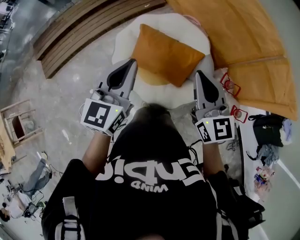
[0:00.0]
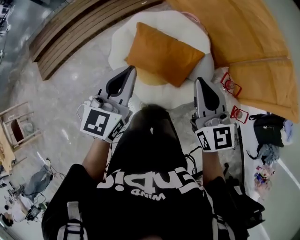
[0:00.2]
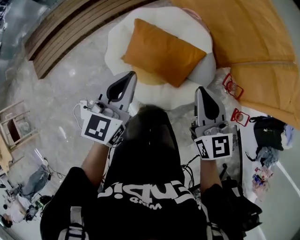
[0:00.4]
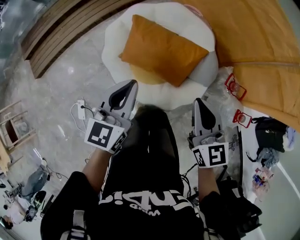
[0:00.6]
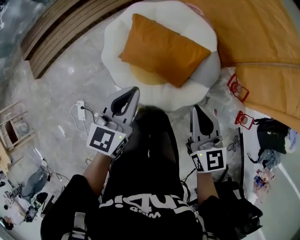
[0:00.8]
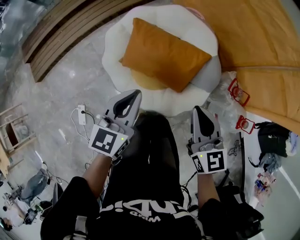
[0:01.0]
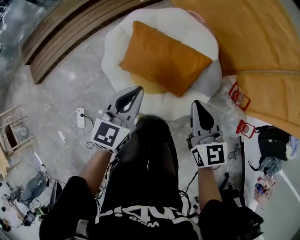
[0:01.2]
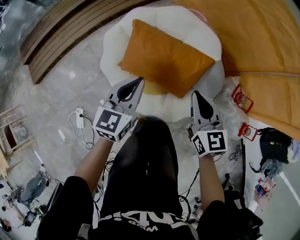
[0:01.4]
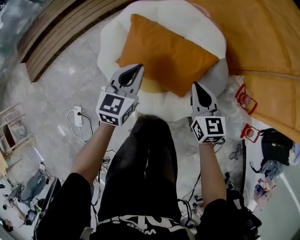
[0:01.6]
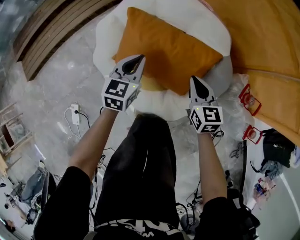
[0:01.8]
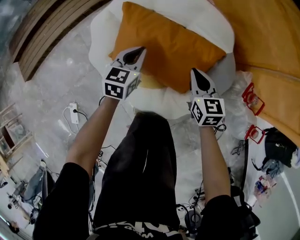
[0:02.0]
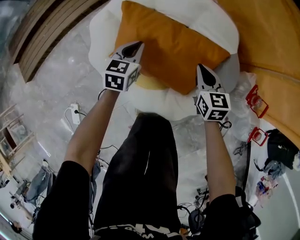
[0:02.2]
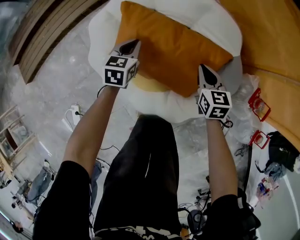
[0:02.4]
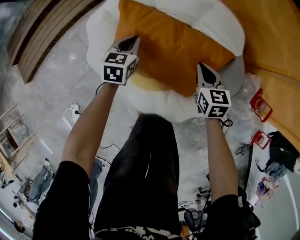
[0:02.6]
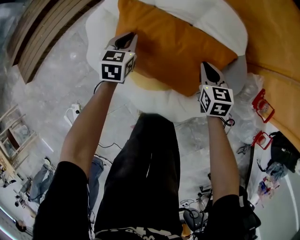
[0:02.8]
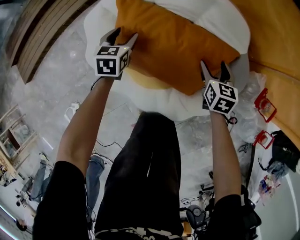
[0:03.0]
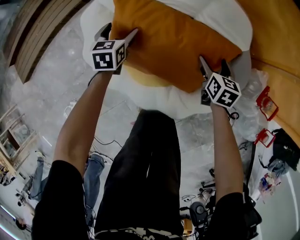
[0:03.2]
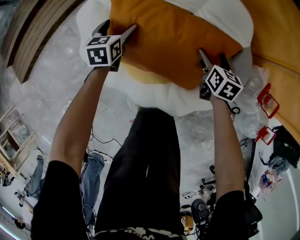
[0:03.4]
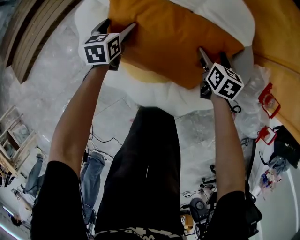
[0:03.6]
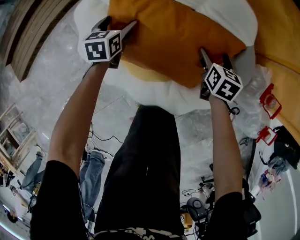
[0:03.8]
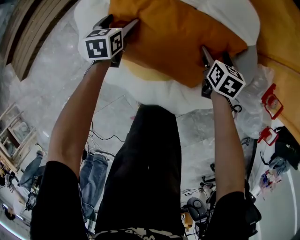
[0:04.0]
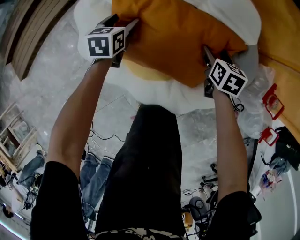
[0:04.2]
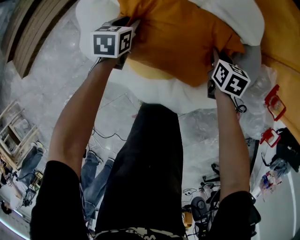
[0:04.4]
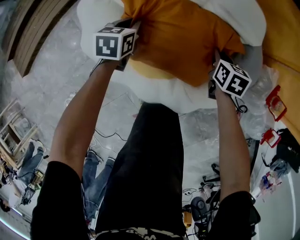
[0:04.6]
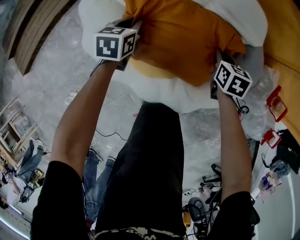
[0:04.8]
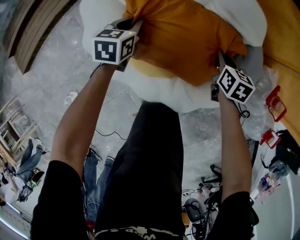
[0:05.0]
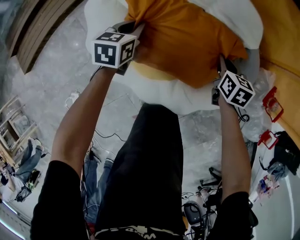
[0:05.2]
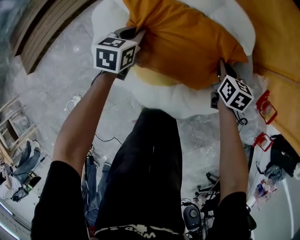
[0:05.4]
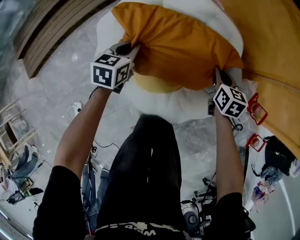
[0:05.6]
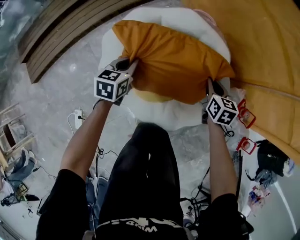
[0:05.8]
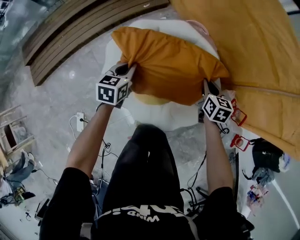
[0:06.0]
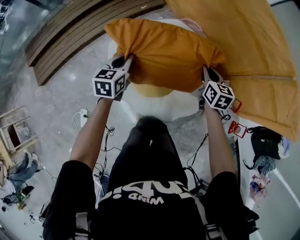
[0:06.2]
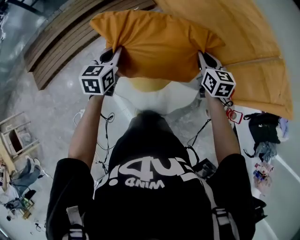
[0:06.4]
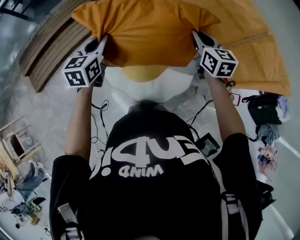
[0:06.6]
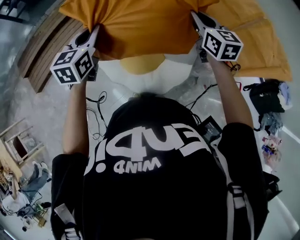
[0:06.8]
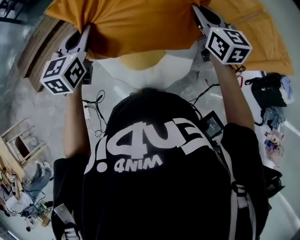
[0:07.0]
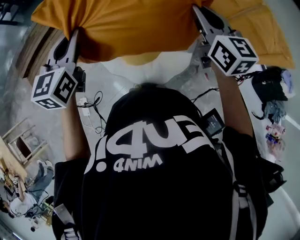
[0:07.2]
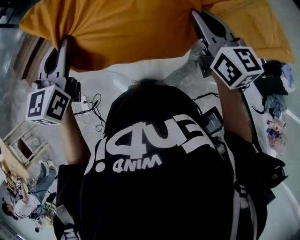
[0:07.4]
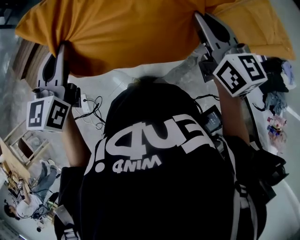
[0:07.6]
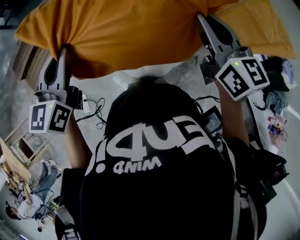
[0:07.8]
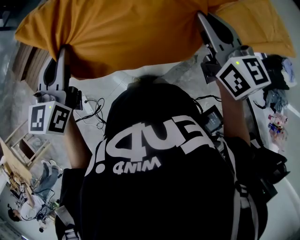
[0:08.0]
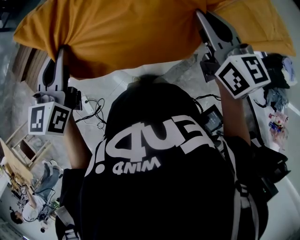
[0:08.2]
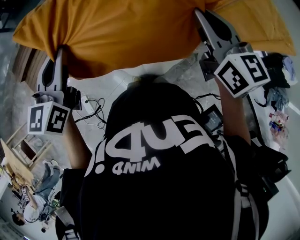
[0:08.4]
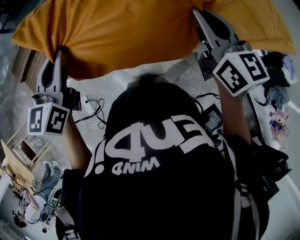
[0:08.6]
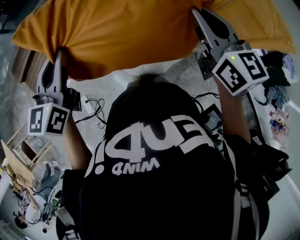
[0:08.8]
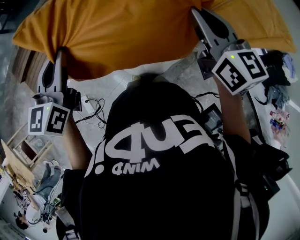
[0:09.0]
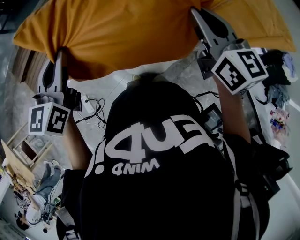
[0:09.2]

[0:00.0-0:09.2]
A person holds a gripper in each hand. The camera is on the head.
0:00.0 to 0:01.6: The grippers both shift downward by roughly 35 cm. The right gripper changes its angle by some 20 degrees.
0:01.6 to 0:03.0: Both grippers travel together downward and forward, about 25 cm. The left gripper turns by approximately 20 degrees, and opens its fingers. Meanwhile the right gripper changes its angle by roughly 20 degrees, and opens up.
0:03.0 to 0:04.6: The left gripper changes place by roughly 5 cm, and closes; the right gripper moves downward, about 5 cm, and closes.
0:04.6 to 0:06.2: Both grippers move upward, about 40 cm. The right gripper swivels approximately 20 degrees.
0:06.2 to 0:07.6: Both grippers travel together upward and backward, about 35 cm. The left gripper changes its angle by about 20 degrees, while the right gripper turns by approximately 20 degrees.
0:07.6 to 0:09.2: The grippers make only small movements.

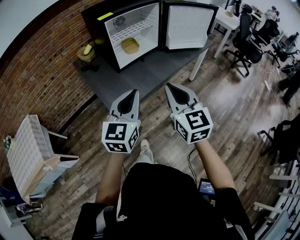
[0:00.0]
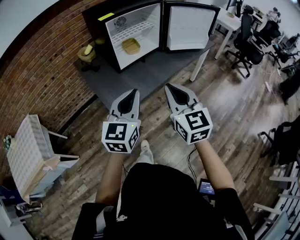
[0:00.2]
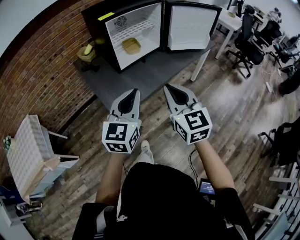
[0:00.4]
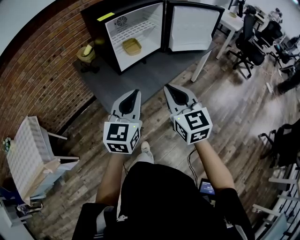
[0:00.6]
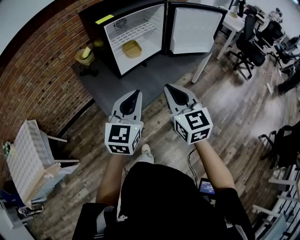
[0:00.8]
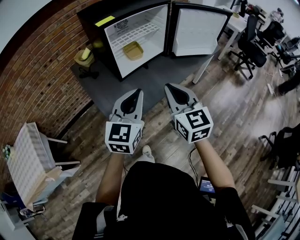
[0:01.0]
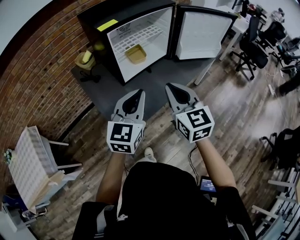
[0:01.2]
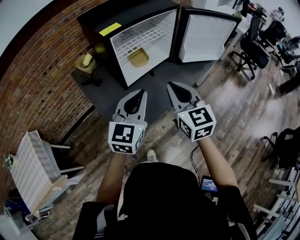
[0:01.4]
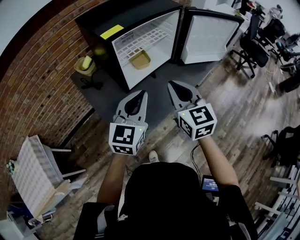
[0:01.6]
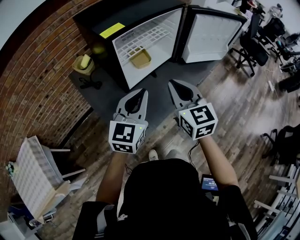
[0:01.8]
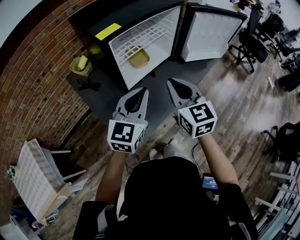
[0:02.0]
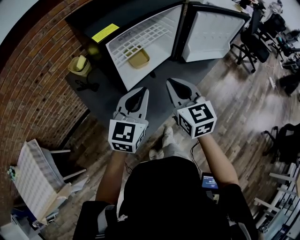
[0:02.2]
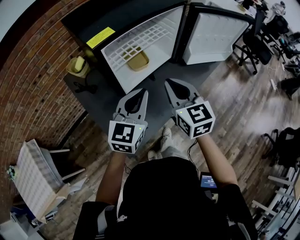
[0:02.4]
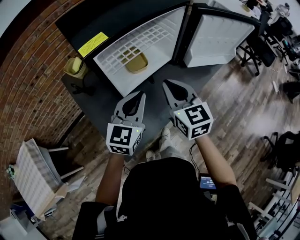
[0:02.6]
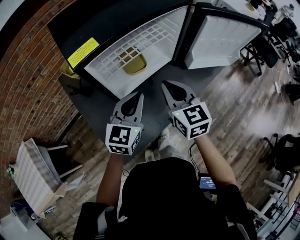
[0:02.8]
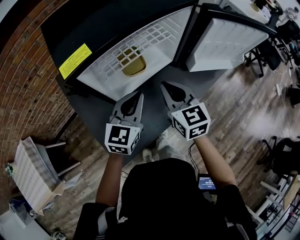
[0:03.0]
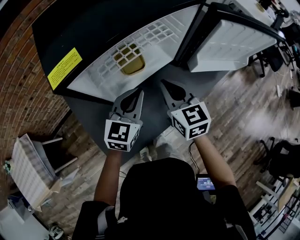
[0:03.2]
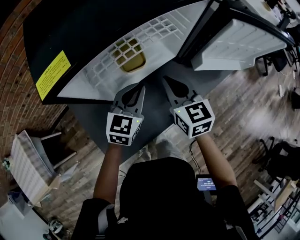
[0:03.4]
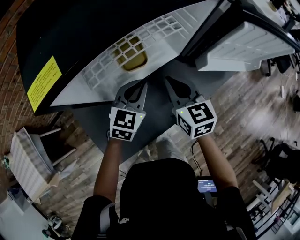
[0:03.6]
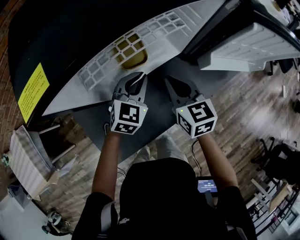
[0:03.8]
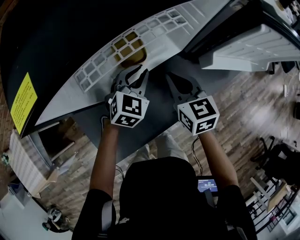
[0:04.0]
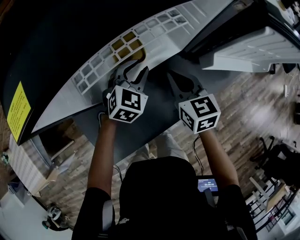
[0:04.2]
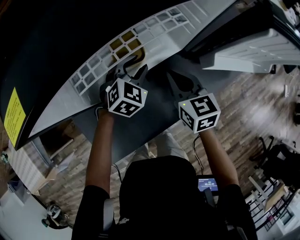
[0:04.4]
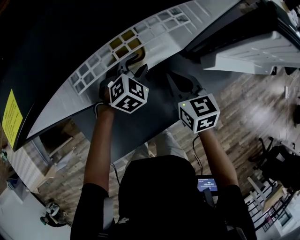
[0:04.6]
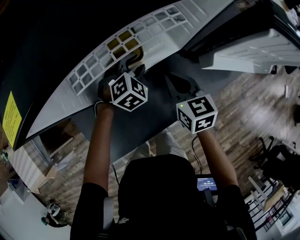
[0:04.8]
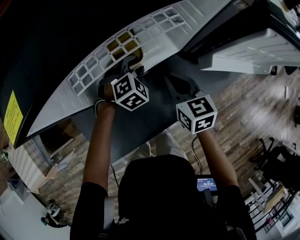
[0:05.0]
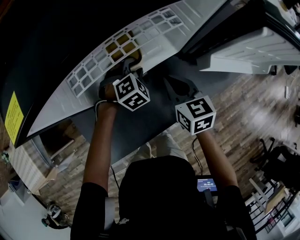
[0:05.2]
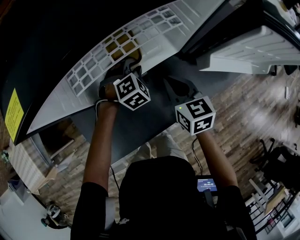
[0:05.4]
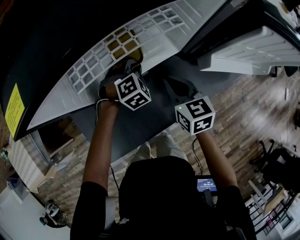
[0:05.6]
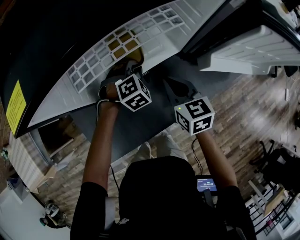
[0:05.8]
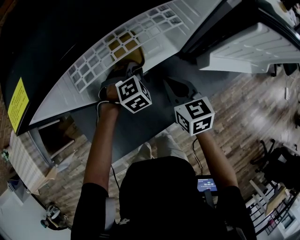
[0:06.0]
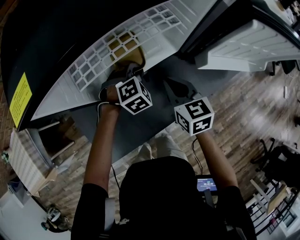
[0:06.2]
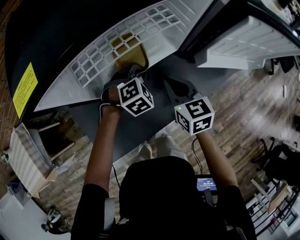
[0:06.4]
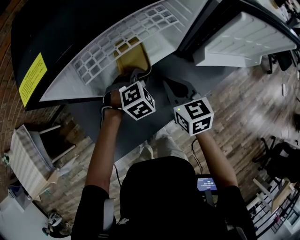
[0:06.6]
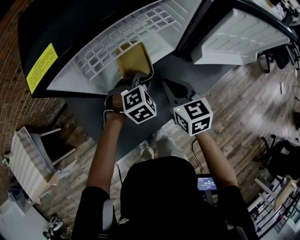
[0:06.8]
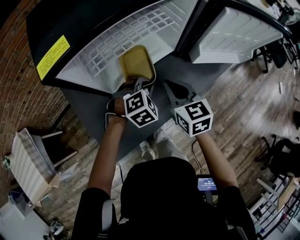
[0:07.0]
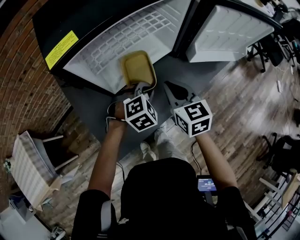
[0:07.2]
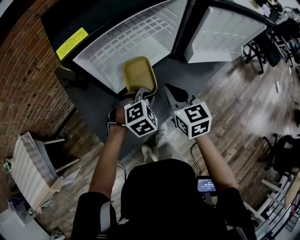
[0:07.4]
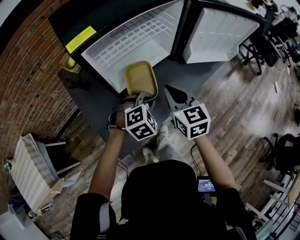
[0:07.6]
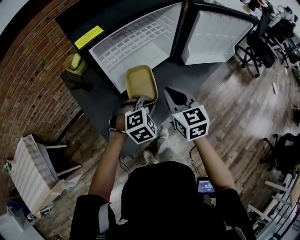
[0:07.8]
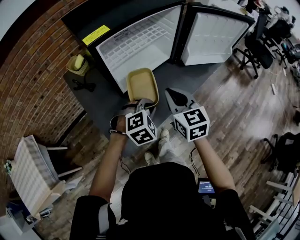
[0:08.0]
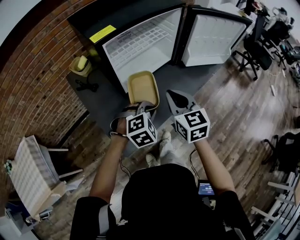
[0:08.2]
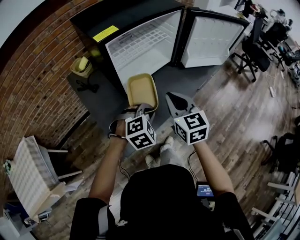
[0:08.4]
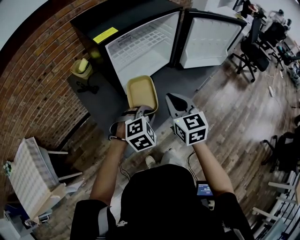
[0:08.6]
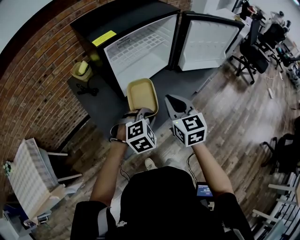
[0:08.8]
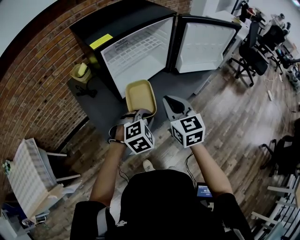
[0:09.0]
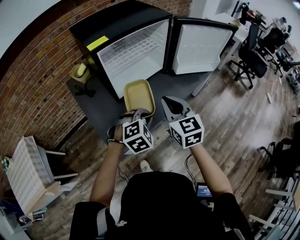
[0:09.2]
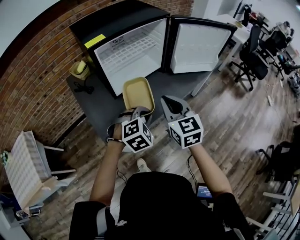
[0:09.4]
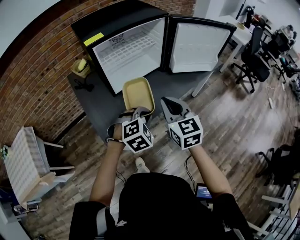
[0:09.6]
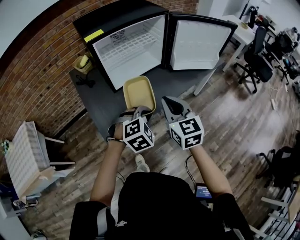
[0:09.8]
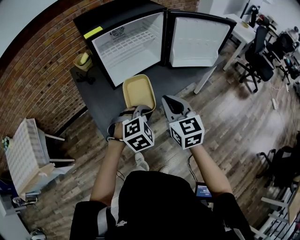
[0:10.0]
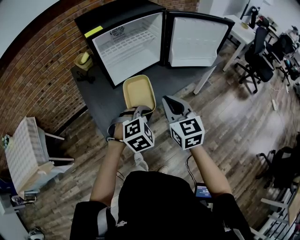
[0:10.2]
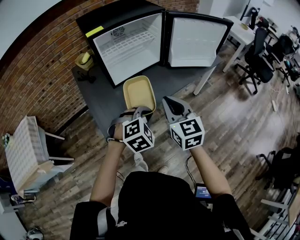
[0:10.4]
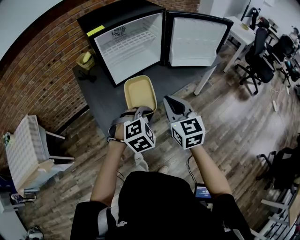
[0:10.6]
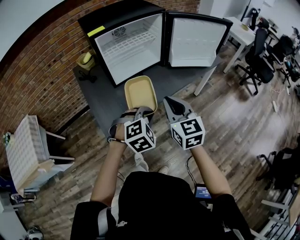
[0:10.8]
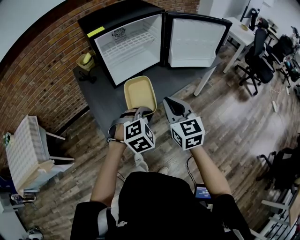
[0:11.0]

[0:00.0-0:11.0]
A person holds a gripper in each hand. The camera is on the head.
0:00.0 to 0:01.6: The two grippers go approximately 25 cm forward.
0:01.6 to 0:03.2: Both grippers move forward and downward, roughly 25 cm.
0:03.2 to 0:04.8: The left gripper moves downward and forward, some 20 cm, tilts its fingers some 30 degrees downward, and opens up. The right gripper shifts some 15 cm downward and forward.
0:04.8 to 0:06.2: The left gripper closes.
0:06.2 to 0:07.8: Both grippers move backward and upward, some 25 cm.
0:07.8 to 0:09.4: Both grippers move backward and upward, some 10 cm.
0:09.4 to 0:11.0: The two grippers go roughly 10 cm backward and to the right.

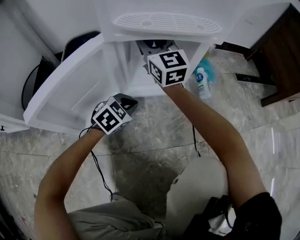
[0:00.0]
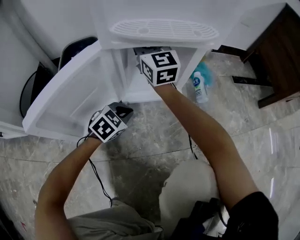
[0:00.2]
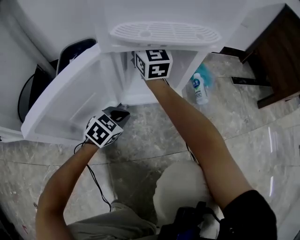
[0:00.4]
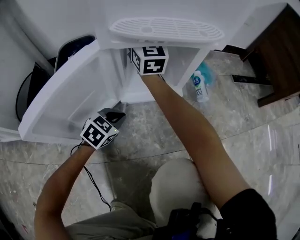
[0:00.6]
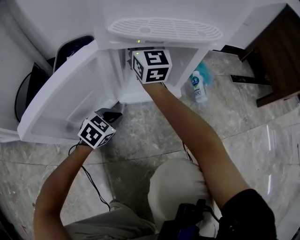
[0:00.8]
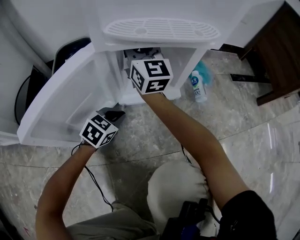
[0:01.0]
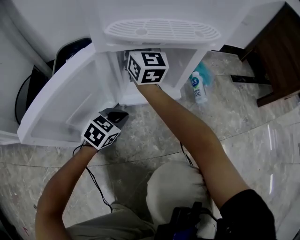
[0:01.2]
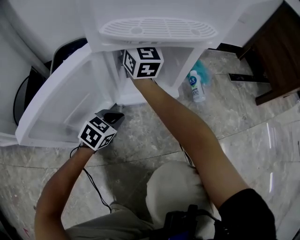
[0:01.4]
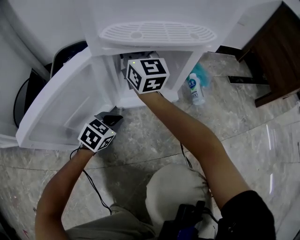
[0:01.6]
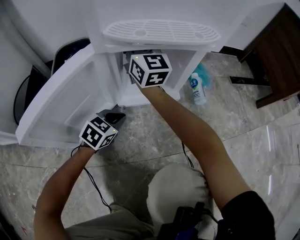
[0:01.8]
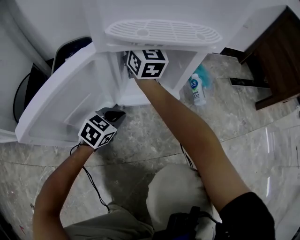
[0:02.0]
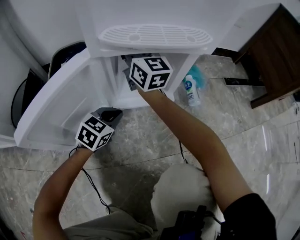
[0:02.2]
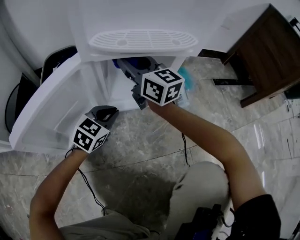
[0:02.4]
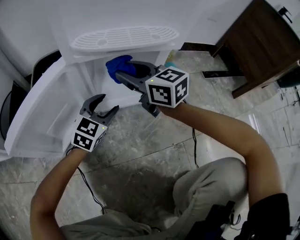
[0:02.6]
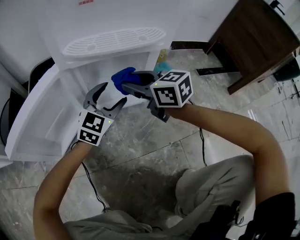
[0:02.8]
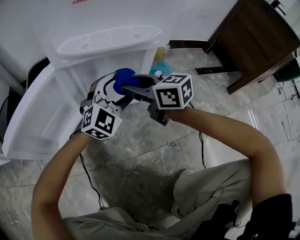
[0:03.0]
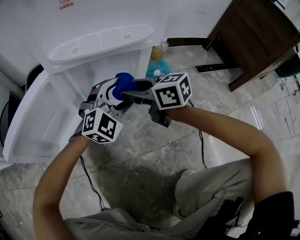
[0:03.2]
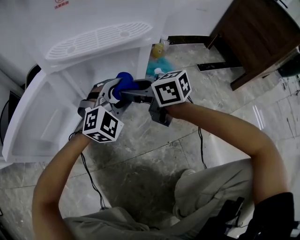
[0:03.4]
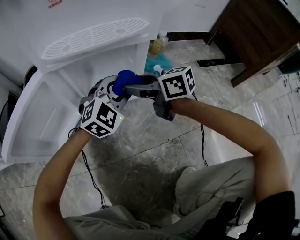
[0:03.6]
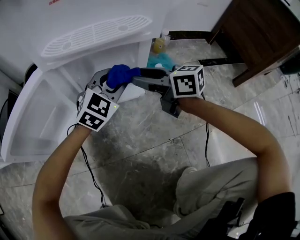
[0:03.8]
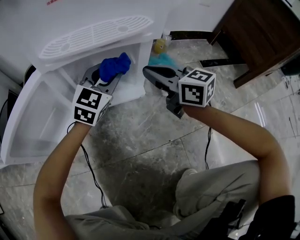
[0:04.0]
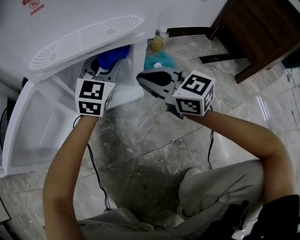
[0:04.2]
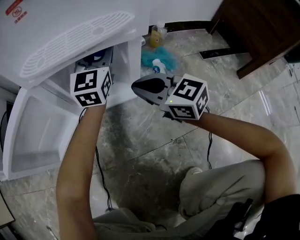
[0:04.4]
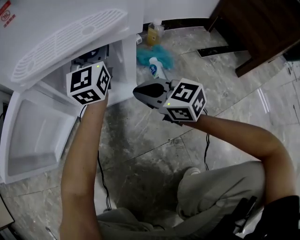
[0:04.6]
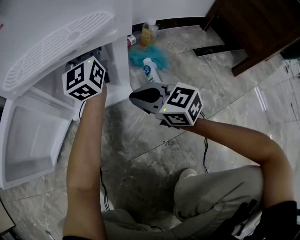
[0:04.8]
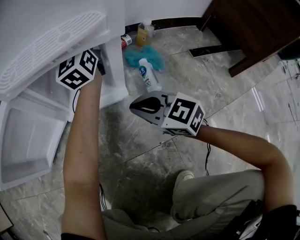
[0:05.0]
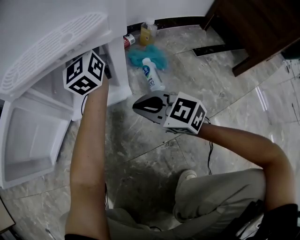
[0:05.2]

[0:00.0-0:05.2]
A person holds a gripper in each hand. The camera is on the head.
0:00.0 to 0:01.8: The right gripper goes forward and backward, some 5 cm each way, reversing 2 times.
0:01.8 to 0:03.4: The right gripper travels backward, to the right and downward by some 20 cm, and tips its fingers downward by roughly 30 degrees; the left gripper goes approximately 20 cm to the right and upward, rotates around the line of its fingers by roughly 50 degrees, clockwise from behind, and opens up.
0:03.4 to 0:05.2: The right gripper travels to the right, backward and downward by approximately 10 cm, turns by some 30 degrees, and closes. Meanwhile the left gripper is displaced forward and upward by approximately 20 cm, and points its fingers approximately 40 degrees further upward.
